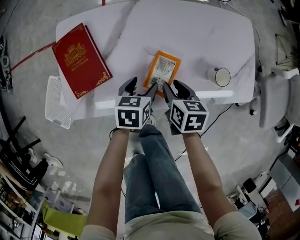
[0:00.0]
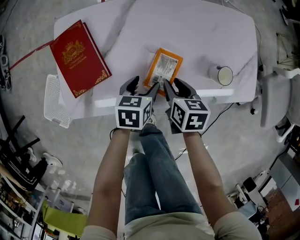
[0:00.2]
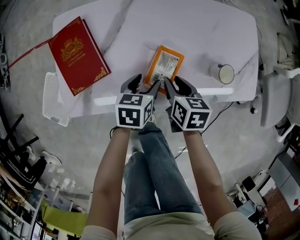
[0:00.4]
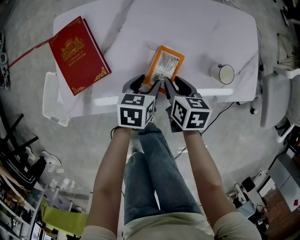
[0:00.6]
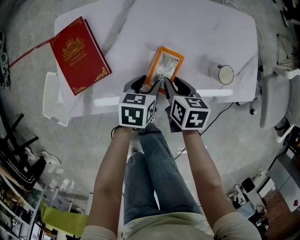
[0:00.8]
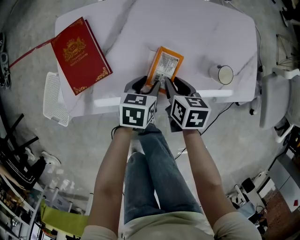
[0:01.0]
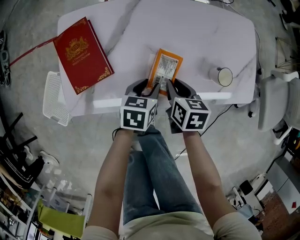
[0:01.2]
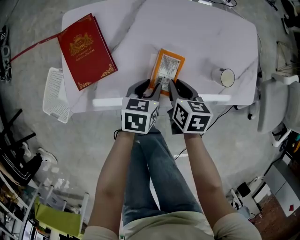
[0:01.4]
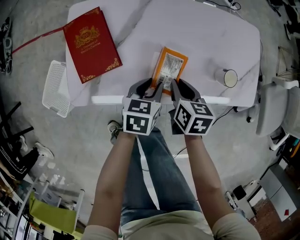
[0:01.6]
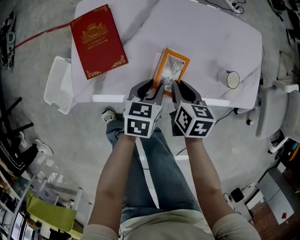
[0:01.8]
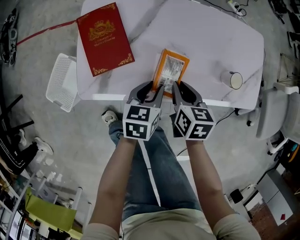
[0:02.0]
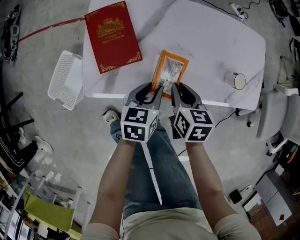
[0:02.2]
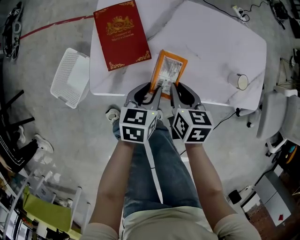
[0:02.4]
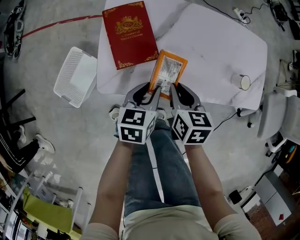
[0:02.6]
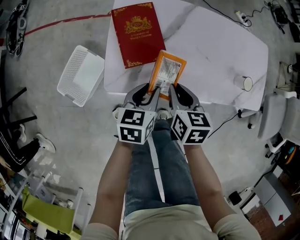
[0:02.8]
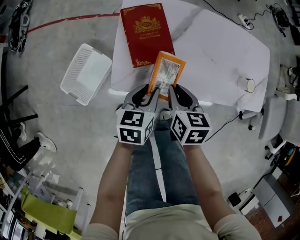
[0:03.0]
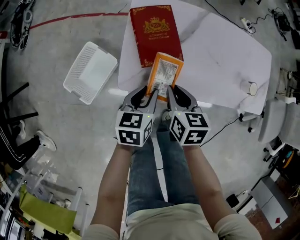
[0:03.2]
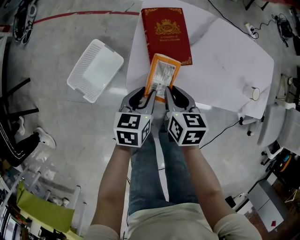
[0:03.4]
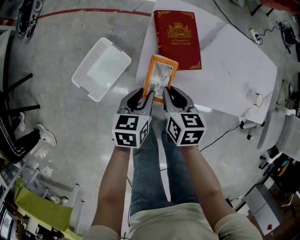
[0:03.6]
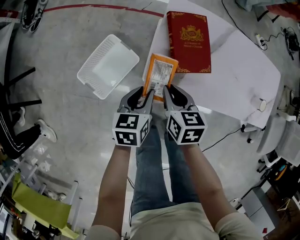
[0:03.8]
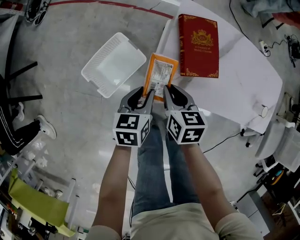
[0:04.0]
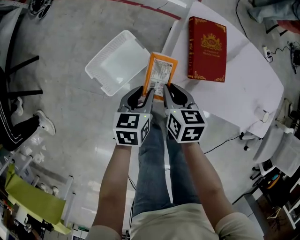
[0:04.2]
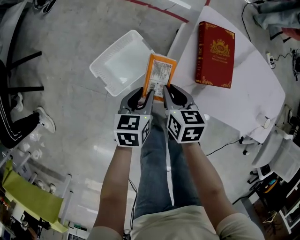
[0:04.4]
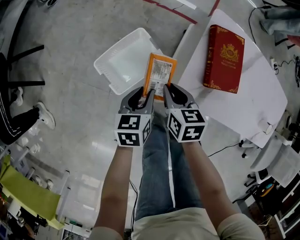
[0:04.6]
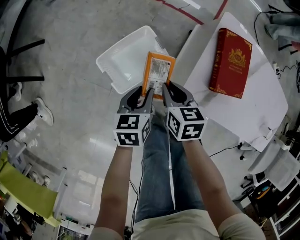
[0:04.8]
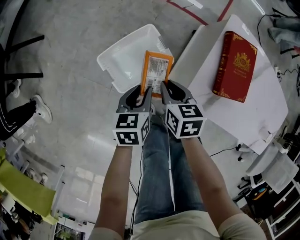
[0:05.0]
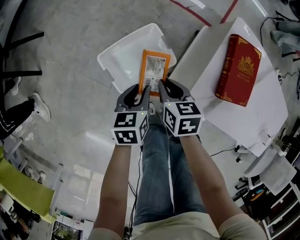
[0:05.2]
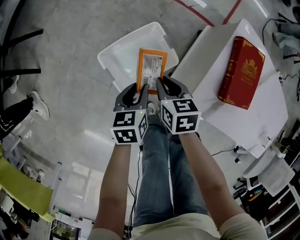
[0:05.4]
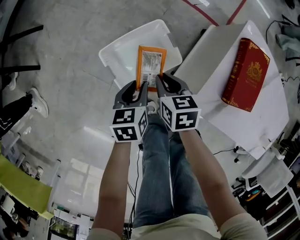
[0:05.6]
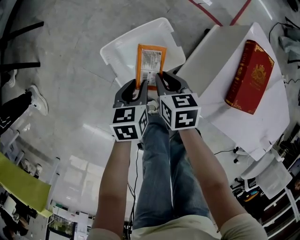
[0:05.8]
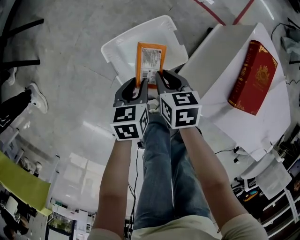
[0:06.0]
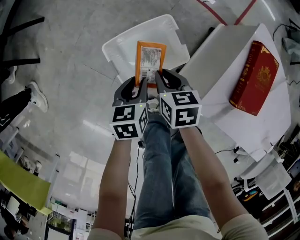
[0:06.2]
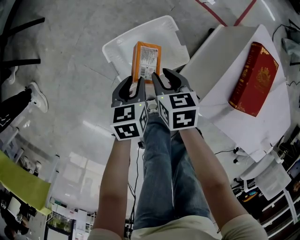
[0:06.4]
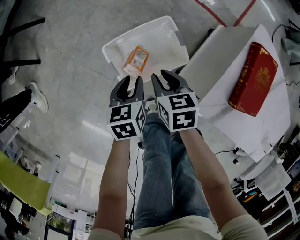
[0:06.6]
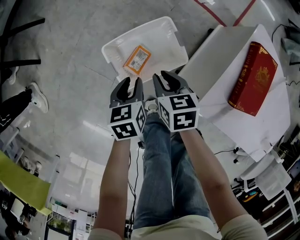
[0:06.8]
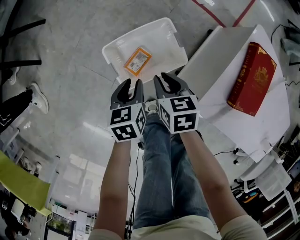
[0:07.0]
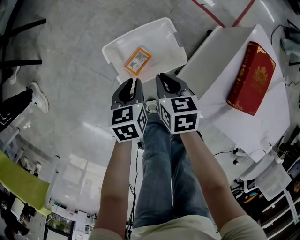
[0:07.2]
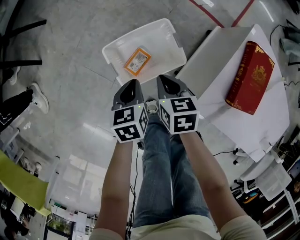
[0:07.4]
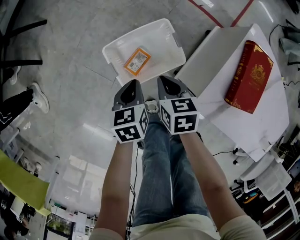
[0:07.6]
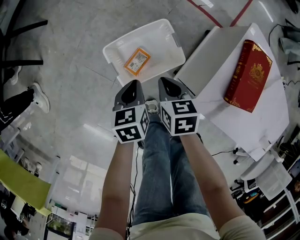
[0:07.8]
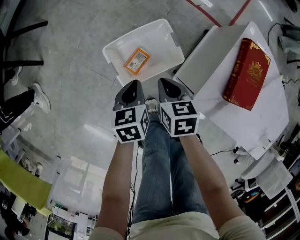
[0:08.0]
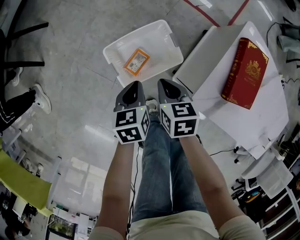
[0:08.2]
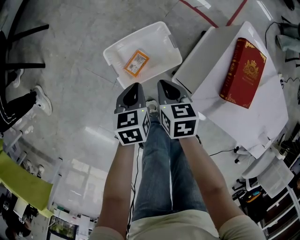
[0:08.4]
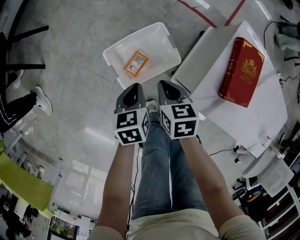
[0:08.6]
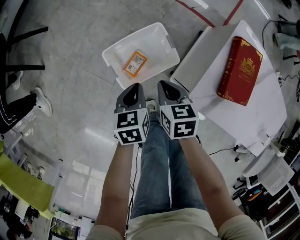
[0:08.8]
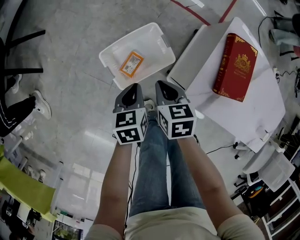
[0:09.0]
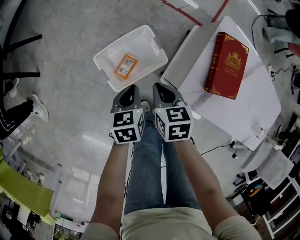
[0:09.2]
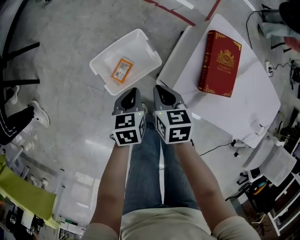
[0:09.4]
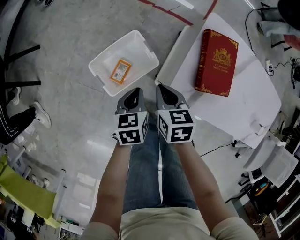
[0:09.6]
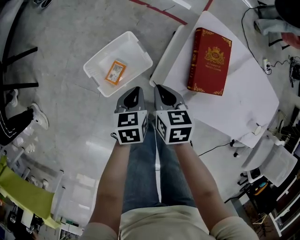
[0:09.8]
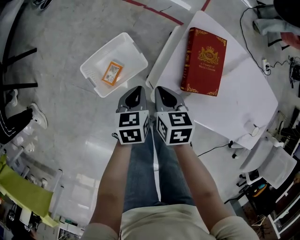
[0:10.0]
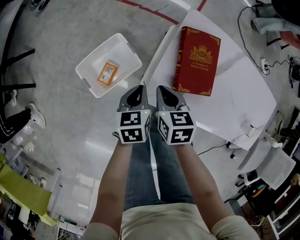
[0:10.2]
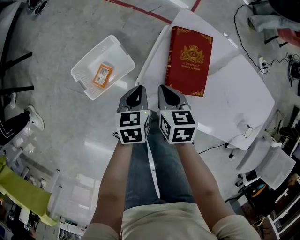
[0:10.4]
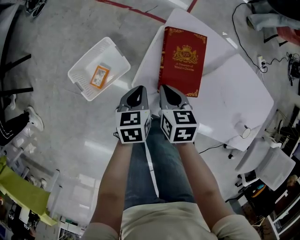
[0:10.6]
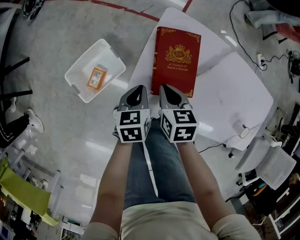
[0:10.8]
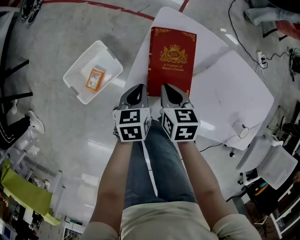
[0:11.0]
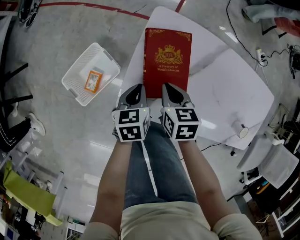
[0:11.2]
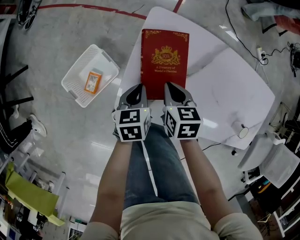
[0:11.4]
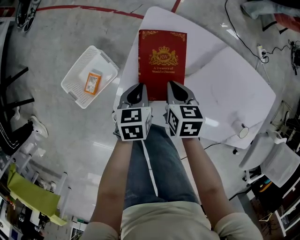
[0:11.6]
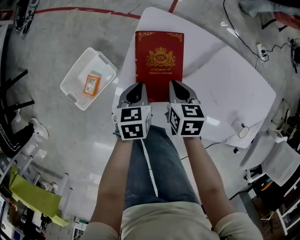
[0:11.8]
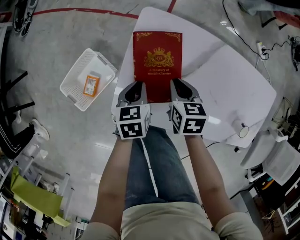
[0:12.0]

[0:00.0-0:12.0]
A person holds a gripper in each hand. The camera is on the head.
0:00.0 to 0:01.6: The left gripper closes up.
0:01.6 to 0:03.0: The two grippers go roughly 20 cm to the left.
0:03.0 to 0:04.4: The two grippers go some 25 cm to the left. The left gripper turns by about 20 degrees; the right gripper swivels about 20 degrees.
0:04.4 to 0:06.0: The left gripper shifts about 20 cm to the left and downward. Meanwhile the right gripper travels to the left, downward and forward by about 20 cm.
0:06.0 to 0:07.6: The grippers move only a little.
0:07.6 to 0:09.0: Both grippers move upward, some 5 cm.
0:09.0 to 0:10.4: Both grippers move to the right, about 20 cm.
0:10.4 to 0:12.0: The right gripper travels to the right by roughly 15 cm; the left gripper goes about 15 cm to the right and forward.

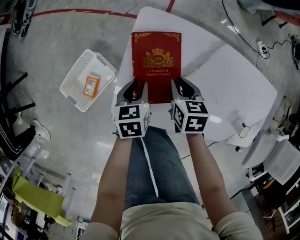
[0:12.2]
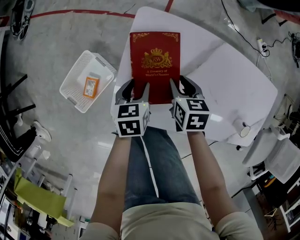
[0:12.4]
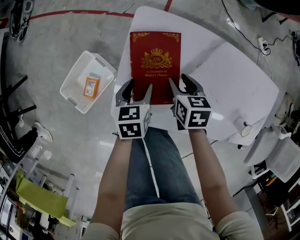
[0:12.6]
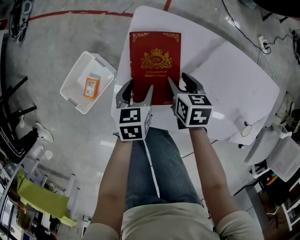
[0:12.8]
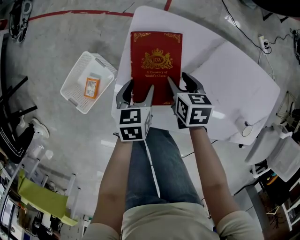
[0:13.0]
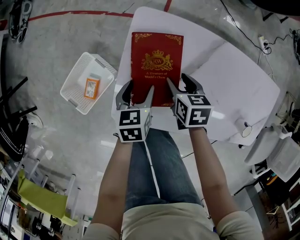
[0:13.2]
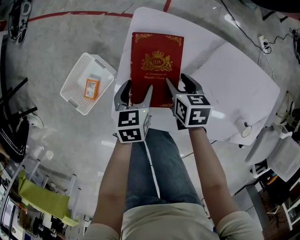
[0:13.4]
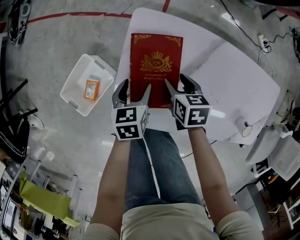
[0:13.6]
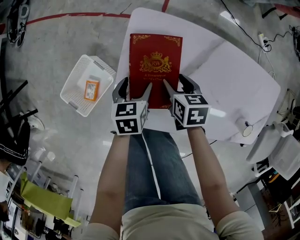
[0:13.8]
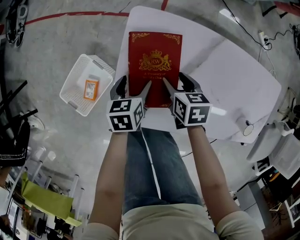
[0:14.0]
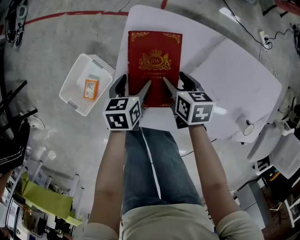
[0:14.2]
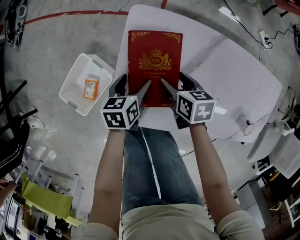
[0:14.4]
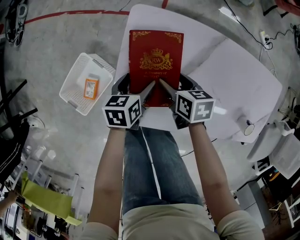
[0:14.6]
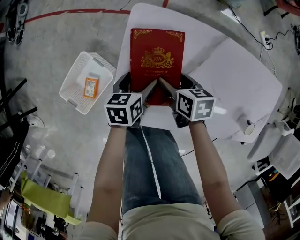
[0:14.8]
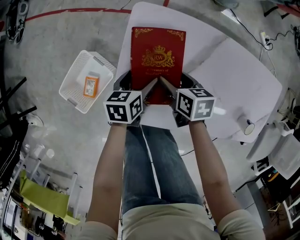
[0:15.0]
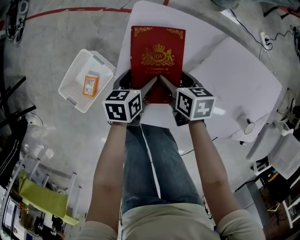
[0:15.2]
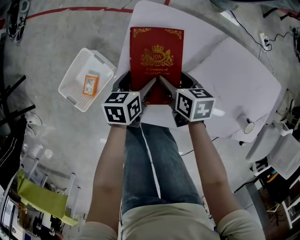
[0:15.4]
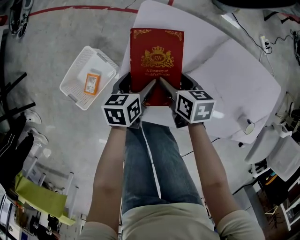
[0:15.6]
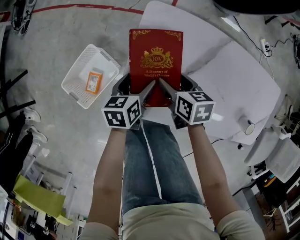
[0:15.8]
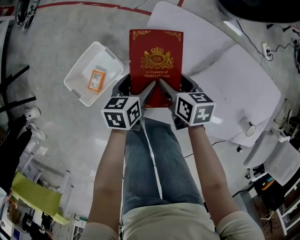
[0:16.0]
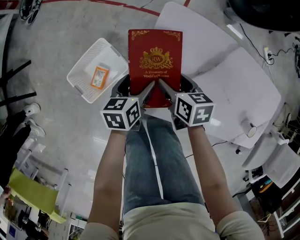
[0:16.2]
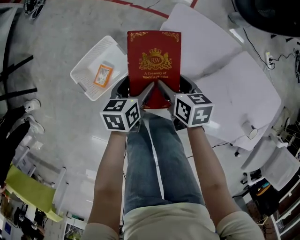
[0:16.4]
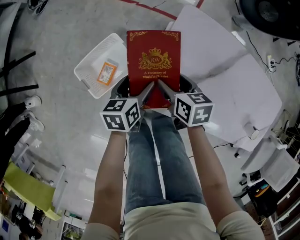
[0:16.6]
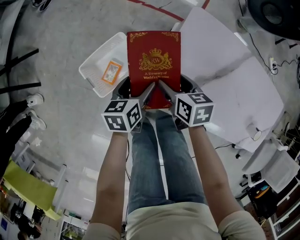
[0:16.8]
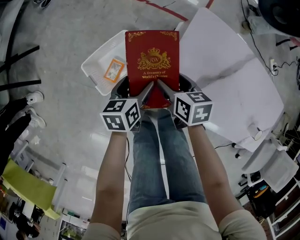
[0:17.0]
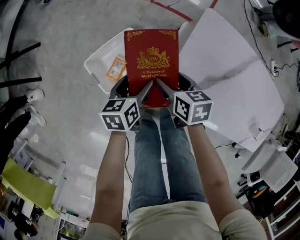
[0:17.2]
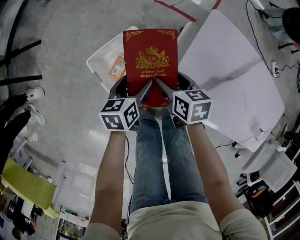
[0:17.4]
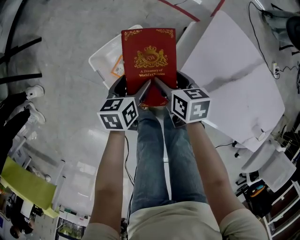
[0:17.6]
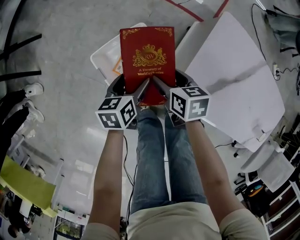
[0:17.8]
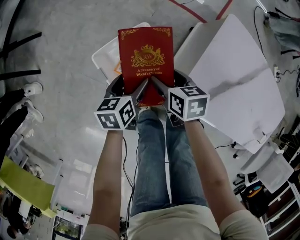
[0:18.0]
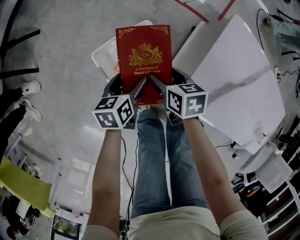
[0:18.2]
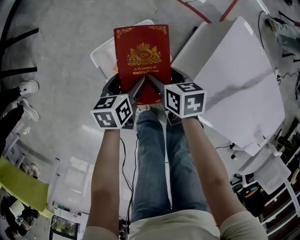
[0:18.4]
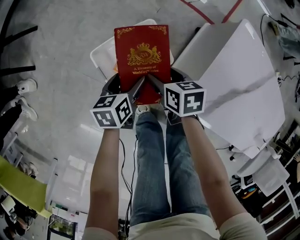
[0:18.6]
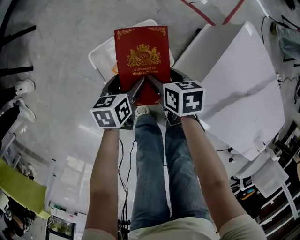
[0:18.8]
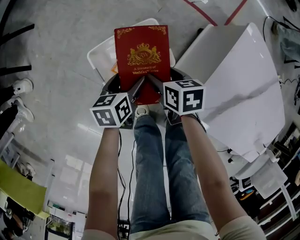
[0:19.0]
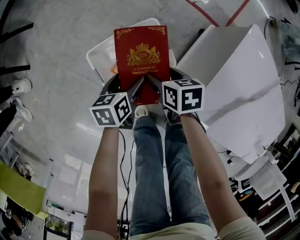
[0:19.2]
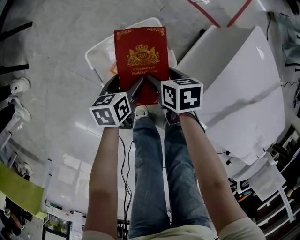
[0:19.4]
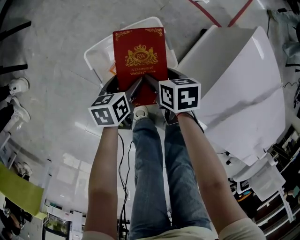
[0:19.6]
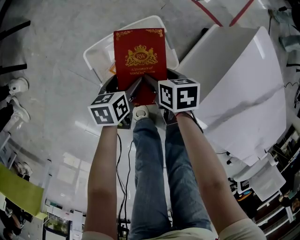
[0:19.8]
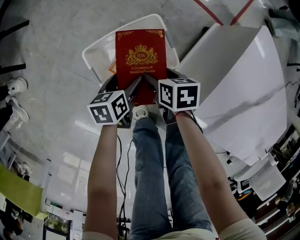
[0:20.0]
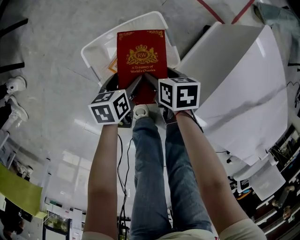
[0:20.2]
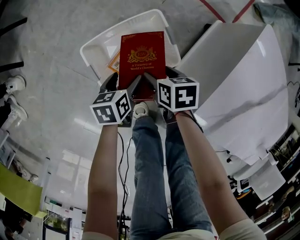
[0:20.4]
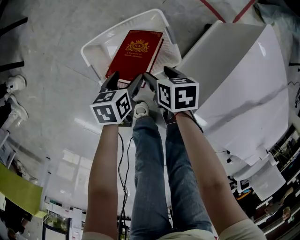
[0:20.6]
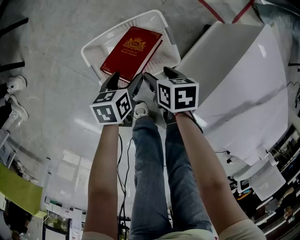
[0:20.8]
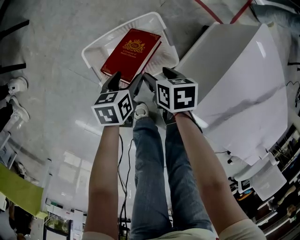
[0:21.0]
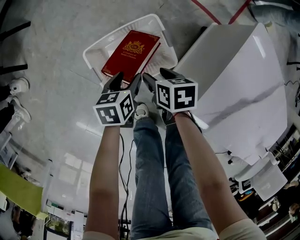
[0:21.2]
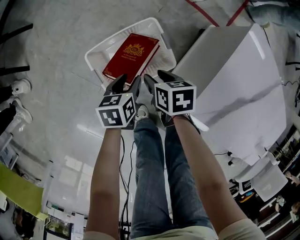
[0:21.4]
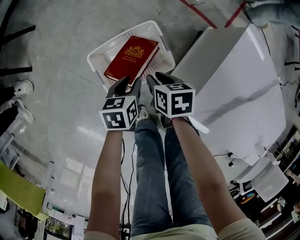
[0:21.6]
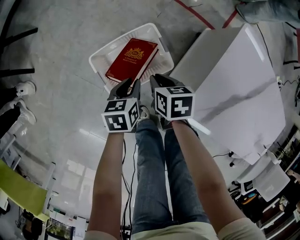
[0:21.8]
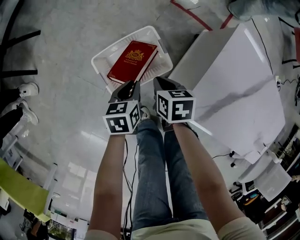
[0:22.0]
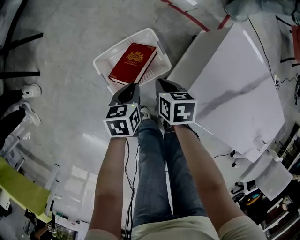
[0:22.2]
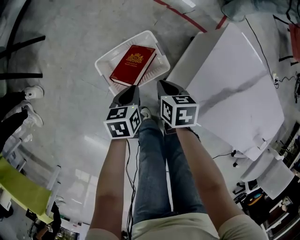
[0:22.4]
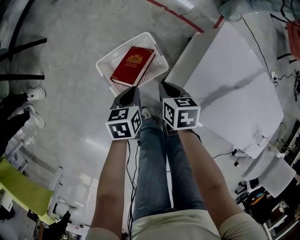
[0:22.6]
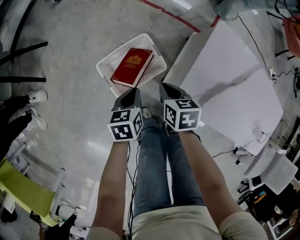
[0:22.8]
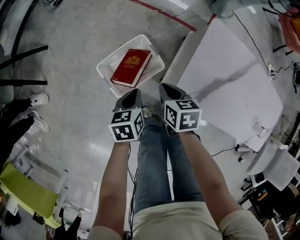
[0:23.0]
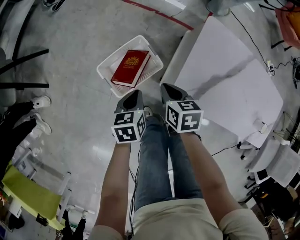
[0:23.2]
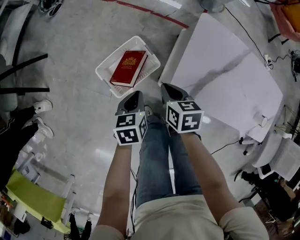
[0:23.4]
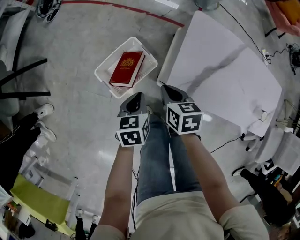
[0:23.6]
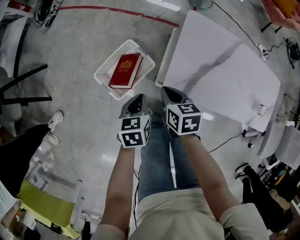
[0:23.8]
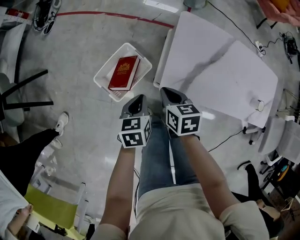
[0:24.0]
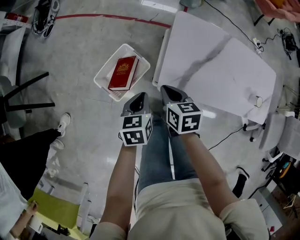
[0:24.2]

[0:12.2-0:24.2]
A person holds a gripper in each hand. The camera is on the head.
0:12.2 to 0:13.8: The right gripper opens up; the left gripper opens up.
0:13.8 to 0:15.2: The grippers stay close to where they were, moving slightly.
0:15.2 to 0:16.6: The two grippers go about 15 cm to the left.
0:16.6 to 0:18.2: Both grippers move to the left, roughly 20 cm.
0:18.2 to 0:19.8: The grippers both shift downward by roughly 15 cm.
0:19.8 to 0:21.2: There are only small adjustments of the grippers.
0:21.2 to 0:22.6: Both grippers travel together upward, approximately 15 cm. The right gripper closes its fingers, while the left gripper closes up.
0:22.6 to 0:24.2: The right gripper heads upward, to the right and backward, covering approximately 20 cm; the left gripper goes about 20 cm upward and to the right.
